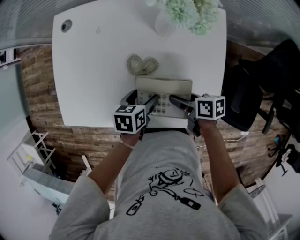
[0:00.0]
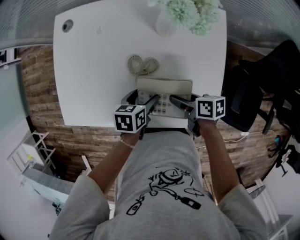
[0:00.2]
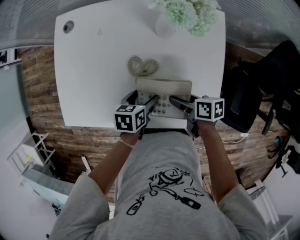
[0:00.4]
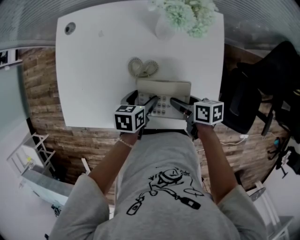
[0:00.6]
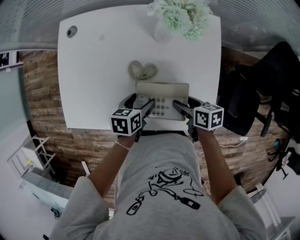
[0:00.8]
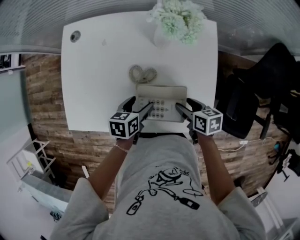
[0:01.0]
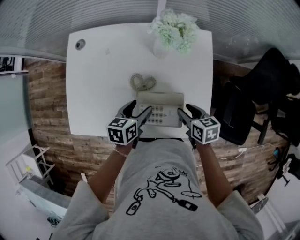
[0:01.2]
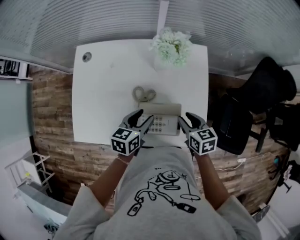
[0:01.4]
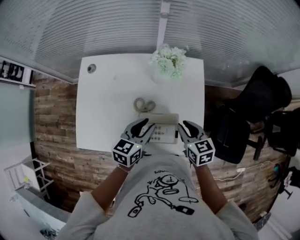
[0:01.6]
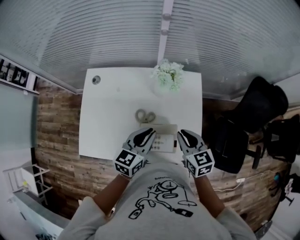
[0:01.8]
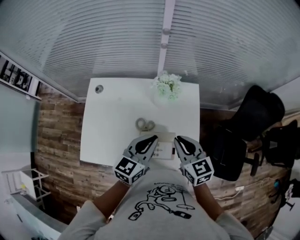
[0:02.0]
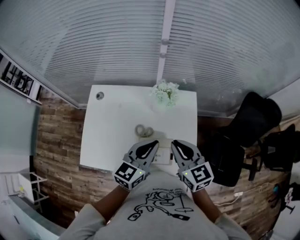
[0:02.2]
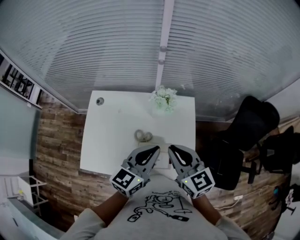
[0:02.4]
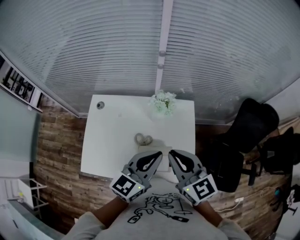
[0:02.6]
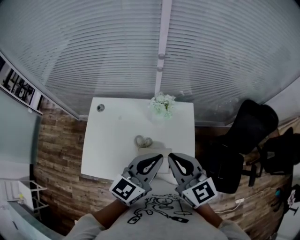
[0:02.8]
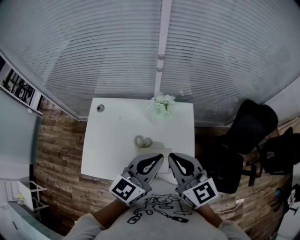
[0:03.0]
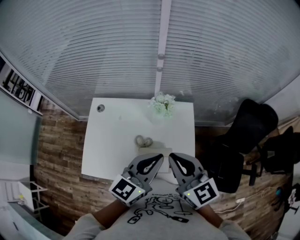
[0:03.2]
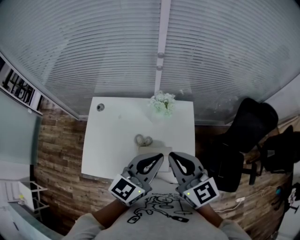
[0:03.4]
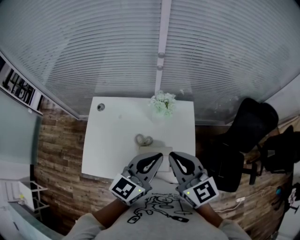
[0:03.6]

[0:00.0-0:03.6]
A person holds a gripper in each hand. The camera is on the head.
0:00.0 to 0:01.8: The two grippers go roughly 20 cm upward. The left gripper tilts its fingers some 30 degrees upward, and closes its fingers, while the right gripper swivels some 60 degrees, and closes.
0:01.8 to 0:03.6: Both grippers move upward, some 20 cm. The right gripper rotates about 20 degrees.

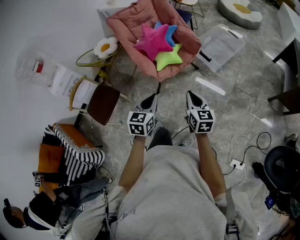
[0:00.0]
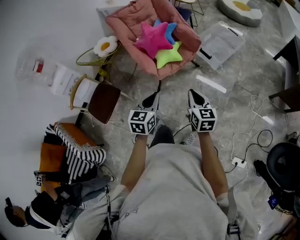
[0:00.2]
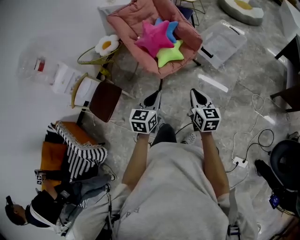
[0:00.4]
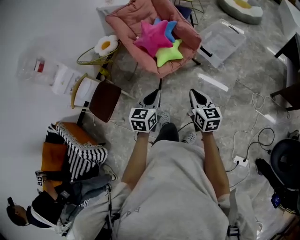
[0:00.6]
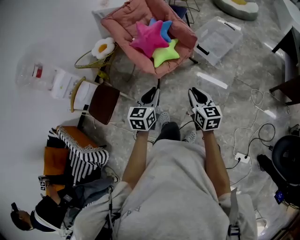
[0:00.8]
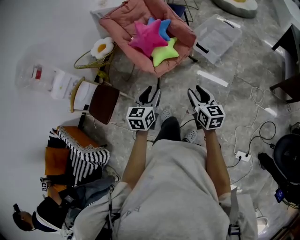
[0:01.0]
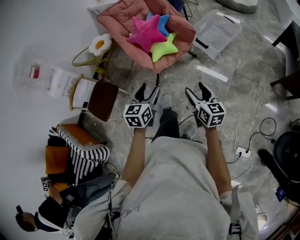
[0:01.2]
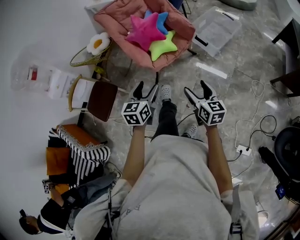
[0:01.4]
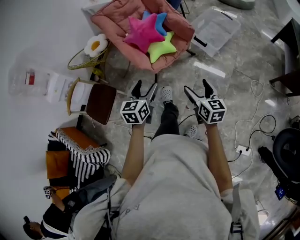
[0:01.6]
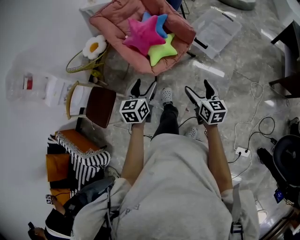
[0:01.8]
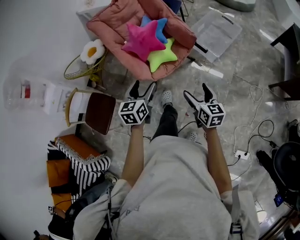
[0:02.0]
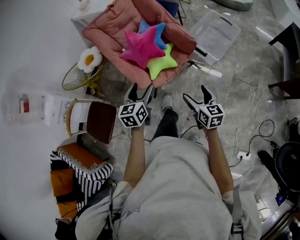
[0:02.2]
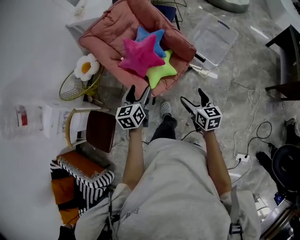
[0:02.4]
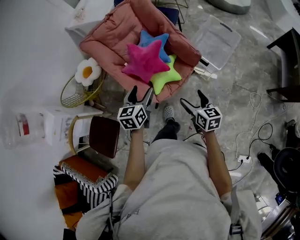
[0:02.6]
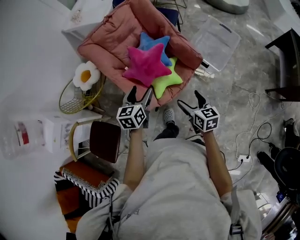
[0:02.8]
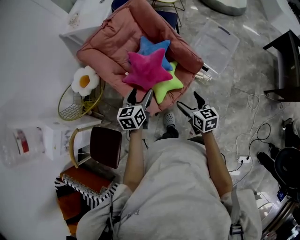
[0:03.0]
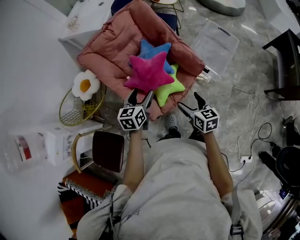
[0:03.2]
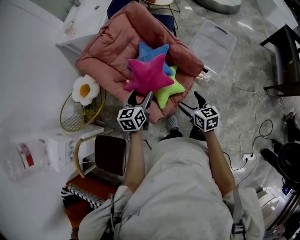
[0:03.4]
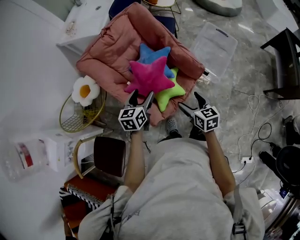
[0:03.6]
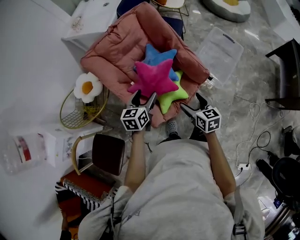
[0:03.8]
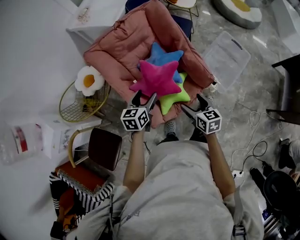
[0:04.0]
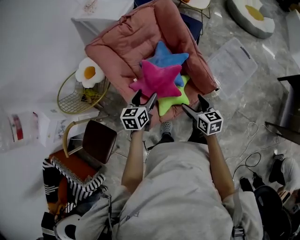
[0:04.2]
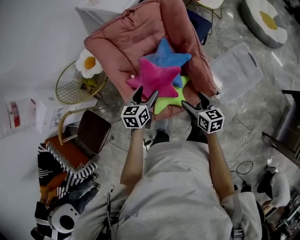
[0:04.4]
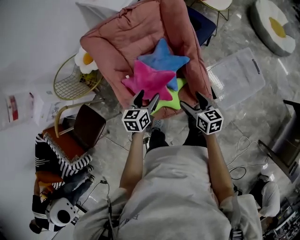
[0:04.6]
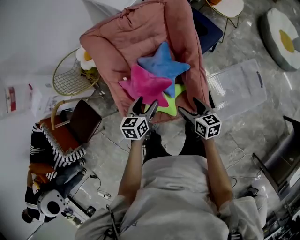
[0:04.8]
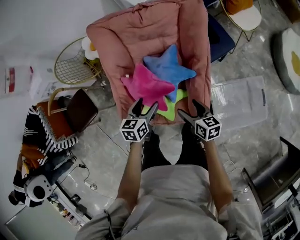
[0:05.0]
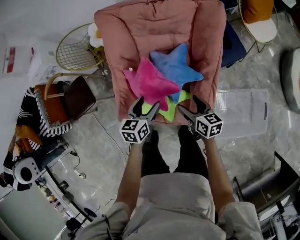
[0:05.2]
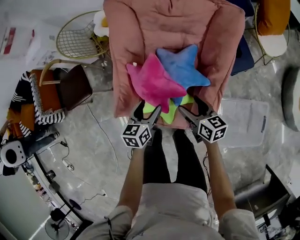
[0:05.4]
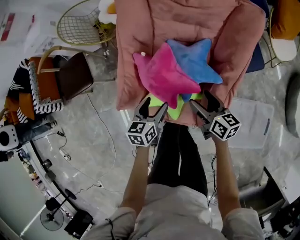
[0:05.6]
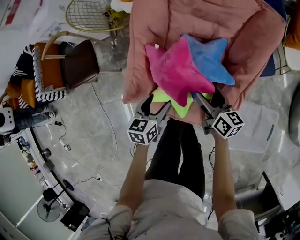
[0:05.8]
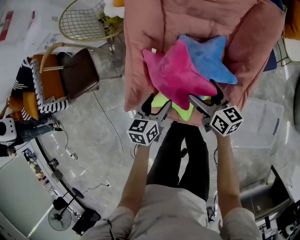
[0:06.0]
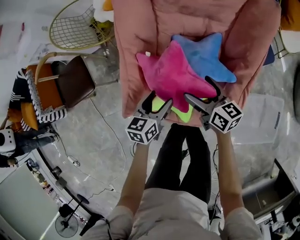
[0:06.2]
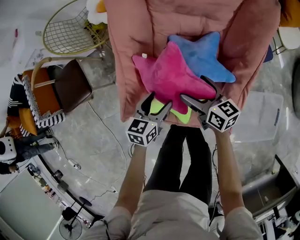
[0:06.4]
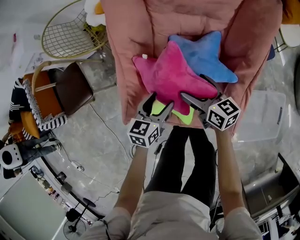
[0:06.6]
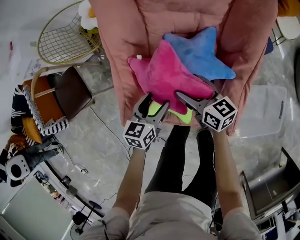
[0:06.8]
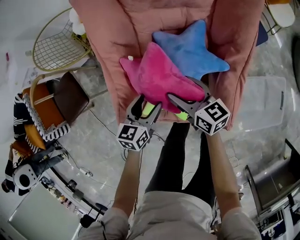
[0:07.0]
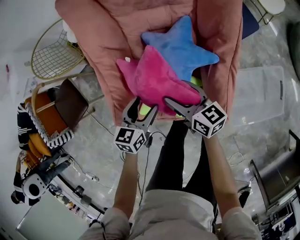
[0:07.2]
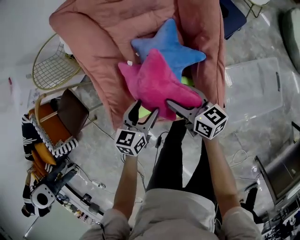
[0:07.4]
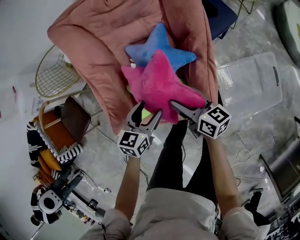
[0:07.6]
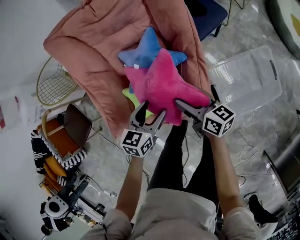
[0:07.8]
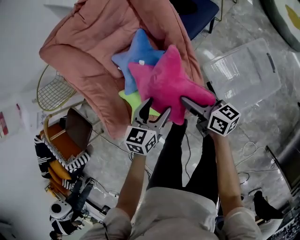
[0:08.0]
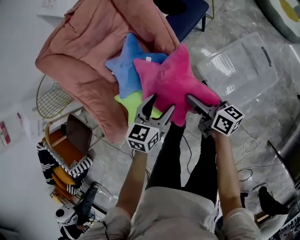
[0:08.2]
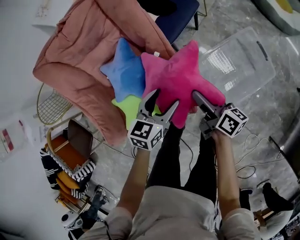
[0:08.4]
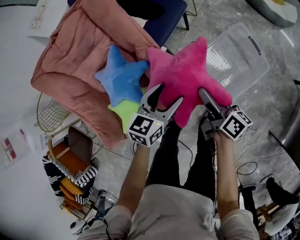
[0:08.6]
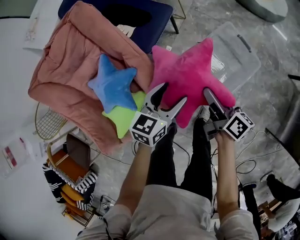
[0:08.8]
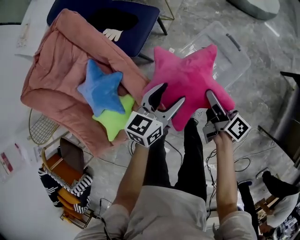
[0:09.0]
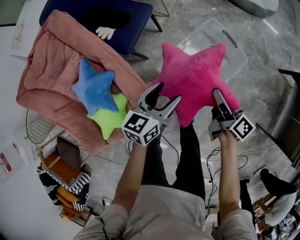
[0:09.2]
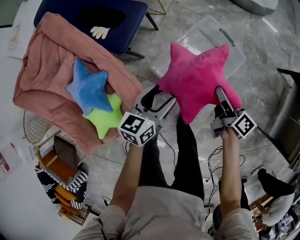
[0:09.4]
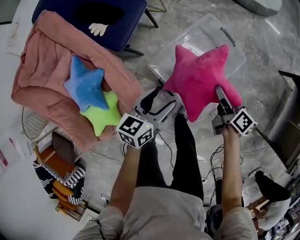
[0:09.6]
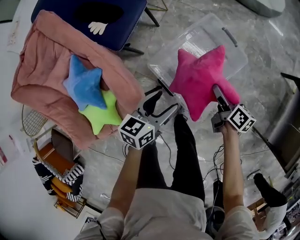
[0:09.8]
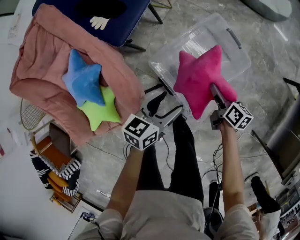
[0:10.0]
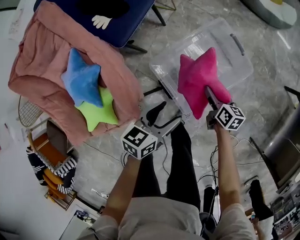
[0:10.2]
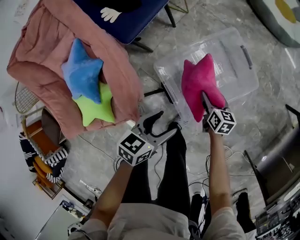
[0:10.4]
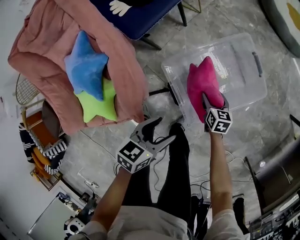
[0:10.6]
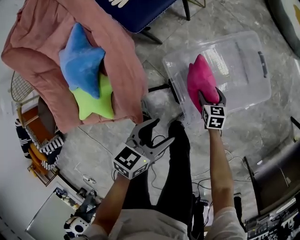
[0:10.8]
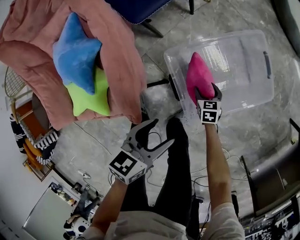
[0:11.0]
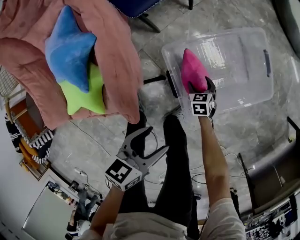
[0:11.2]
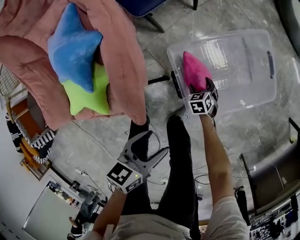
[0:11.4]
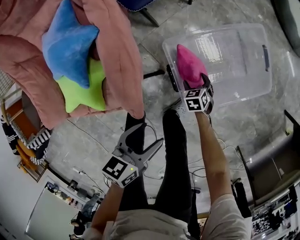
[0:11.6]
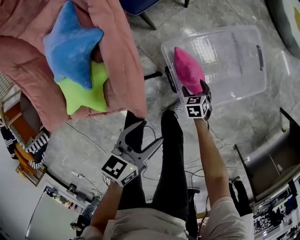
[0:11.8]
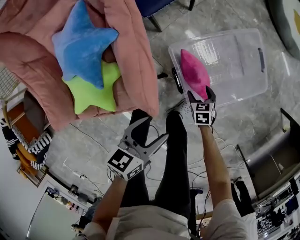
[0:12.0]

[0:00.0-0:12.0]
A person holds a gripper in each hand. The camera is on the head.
0:00.0 to 0:01.6: The right gripper shifts by roughly 5 cm, and opens. The left gripper moves forward, about 5 cm, and opens its fingers.
0:01.6 to 0:03.0: The right gripper moves forward and to the left, about 35 cm. The left gripper travels forward by about 35 cm.
0:03.0 to 0:04.4: The right gripper moves forward, some 20 cm; the left gripper goes some 15 cm forward and downward.
0:04.4 to 0:06.0: The left gripper heads downward, covering roughly 15 cm, and swivels roughly 30 degrees, while the right gripper shifts by roughly 20 cm, and rotates roughly 40 degrees.
0:06.0 to 0:07.6: The right gripper goes about 10 cm to the right and backward. The left gripper shifts about 10 cm to the right, and turns by approximately 30 degrees.
0:07.6 to 0:09.0: The right gripper shifts by about 40 cm, and swivels some 60 degrees, while the left gripper changes place by roughly 40 cm, and turns by about 30 degrees.
0:09.0 to 0:10.4: The left gripper shifts about 15 cm downward, to the right and backward. Meanwhile the right gripper shifts roughly 25 cm downward, and turns by about 50 degrees.
0:10.4 to 0:12.0: The right gripper goes about 20 cm to the left, downward and backward, and changes its angle by approximately 40 degrees. Meanwhile the left gripper moves to the left and backward, approximately 15 cm.

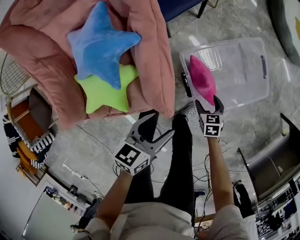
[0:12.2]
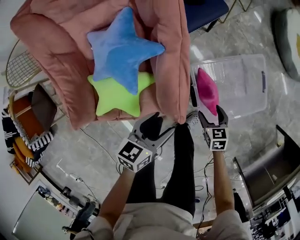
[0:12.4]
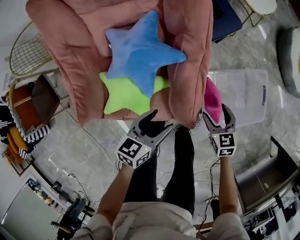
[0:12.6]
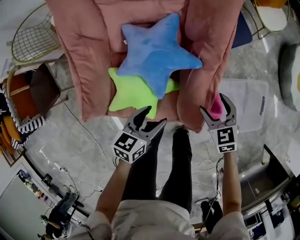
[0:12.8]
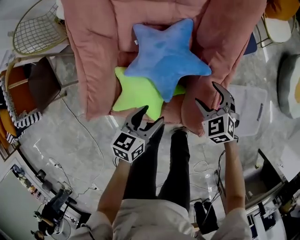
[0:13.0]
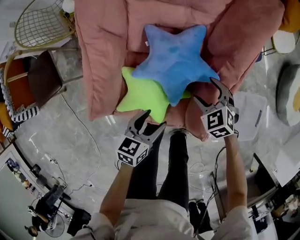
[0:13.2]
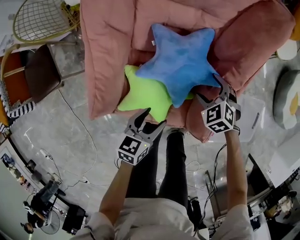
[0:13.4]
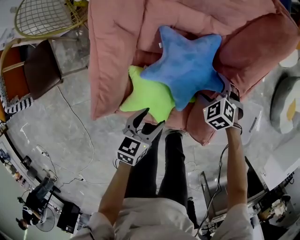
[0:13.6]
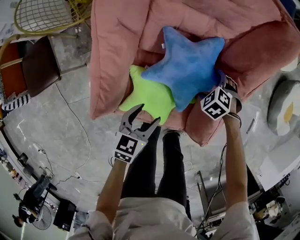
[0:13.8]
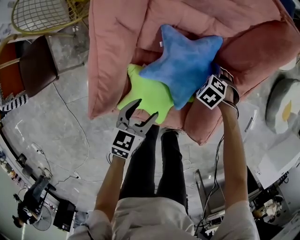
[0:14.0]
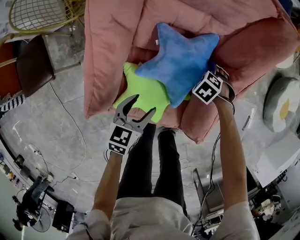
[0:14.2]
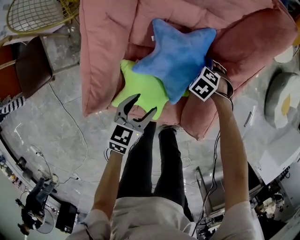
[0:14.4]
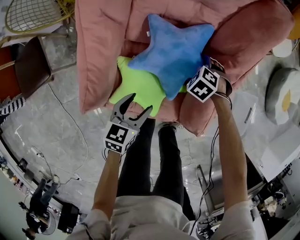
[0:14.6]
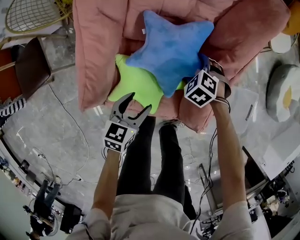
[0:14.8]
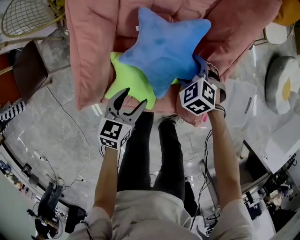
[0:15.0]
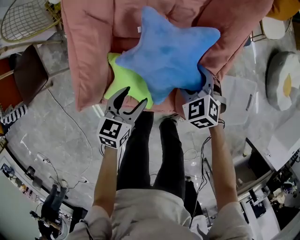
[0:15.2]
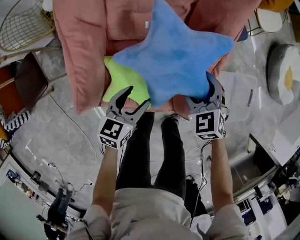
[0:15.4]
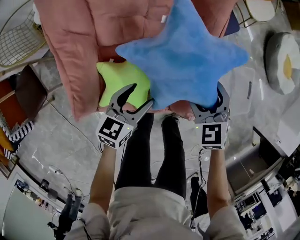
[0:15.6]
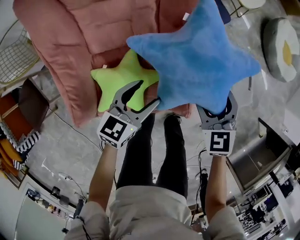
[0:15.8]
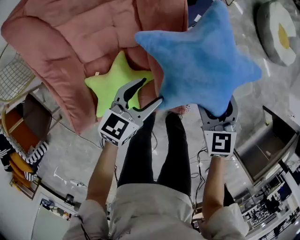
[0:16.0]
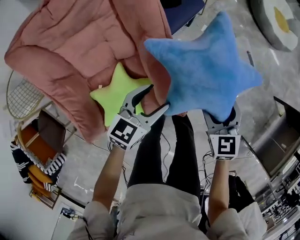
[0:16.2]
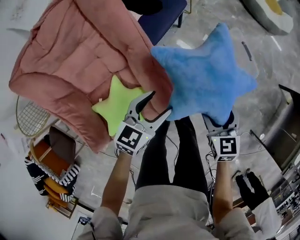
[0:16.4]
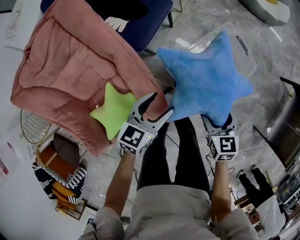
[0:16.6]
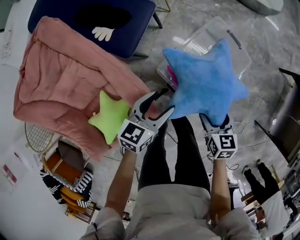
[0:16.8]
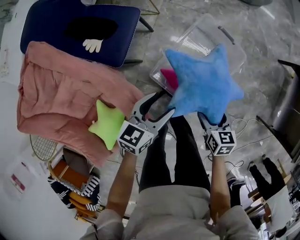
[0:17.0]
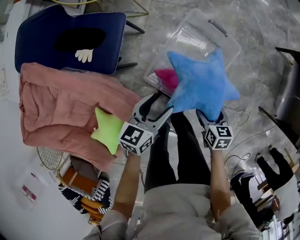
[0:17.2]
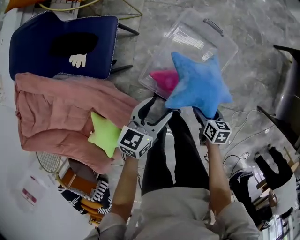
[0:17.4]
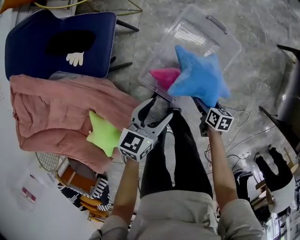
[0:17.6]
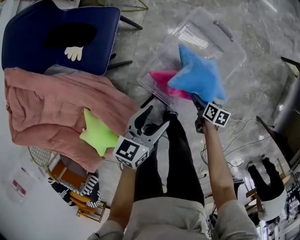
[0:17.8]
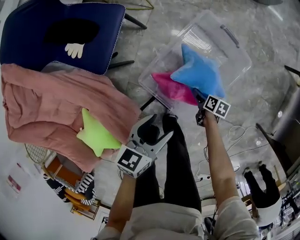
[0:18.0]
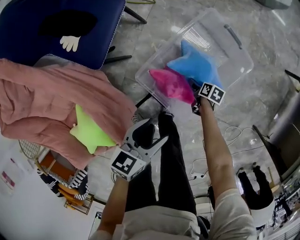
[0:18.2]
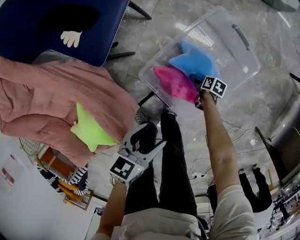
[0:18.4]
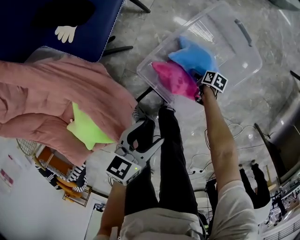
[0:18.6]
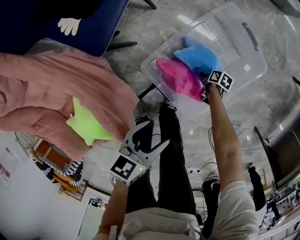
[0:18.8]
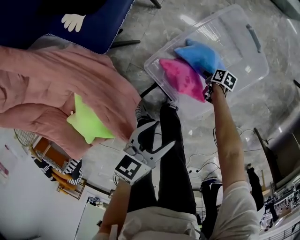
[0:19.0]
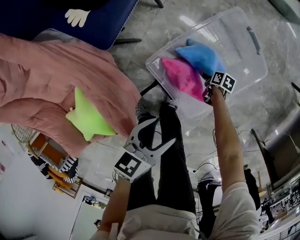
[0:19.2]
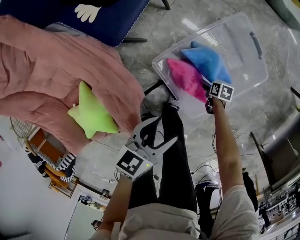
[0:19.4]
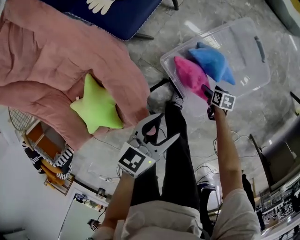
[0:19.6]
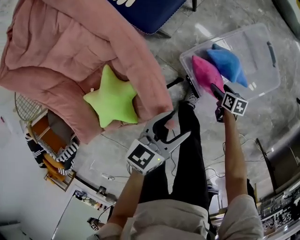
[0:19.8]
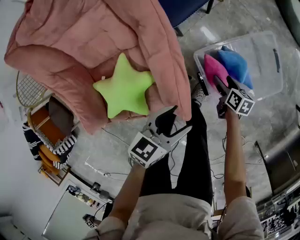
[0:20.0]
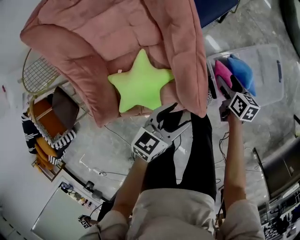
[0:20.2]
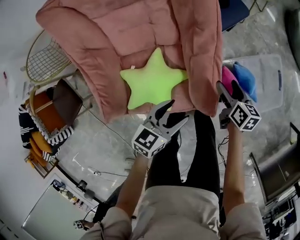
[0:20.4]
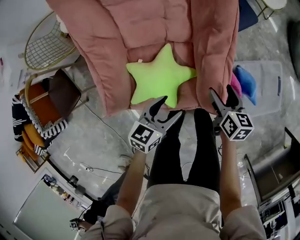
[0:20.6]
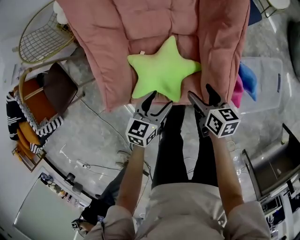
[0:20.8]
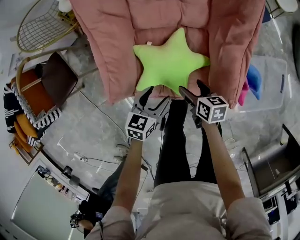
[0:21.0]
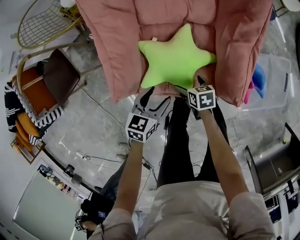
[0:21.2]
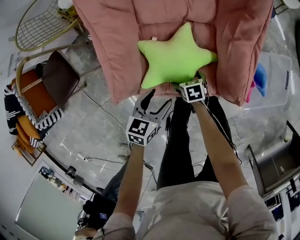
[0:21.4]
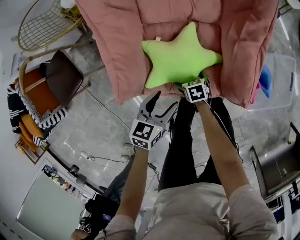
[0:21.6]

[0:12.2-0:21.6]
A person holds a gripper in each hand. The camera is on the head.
0:12.2 to 0:13.8: The right gripper shifts by roughly 50 cm, and twists about 80 degrees counterclockwise, seen from behind; the left gripper ends up about 35 cm from where it was, and swivels approximately 30 degrees.
0:13.8 to 0:15.4: The right gripper goes some 15 cm upward, and turns by some 40 degrees. Meanwhile the left gripper ends up approximately 5 cm from where it was.
0:15.4 to 0:17.0: The two grippers travel together, roughly 50 cm. The left gripper swivels about 50 degrees; the right gripper rotates around the line of its fingers by roughly 80 degrees, clockwise from behind.
0:17.0 to 0:18.4: The right gripper shifts some 40 cm downward, and swivels approximately 40 degrees. Meanwhile the left gripper travels downward and backward by roughly 10 cm.
0:18.4 to 0:20.0: The right gripper is displaced to the left and upward by some 30 cm, and changes its angle by some 40 degrees, while the left gripper goes some 15 cm to the left.
0:20.0 to 0:21.6: The right gripper reaches roughly 20 cm upward, then returns, and rolls counterclockwise, seen from behind, by roughly 40 degrees. The left gripper moves some 35 cm, and changes its angle by about 30 degrees.
